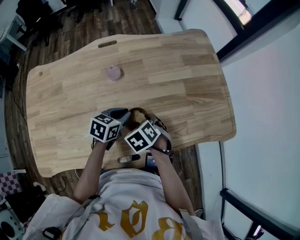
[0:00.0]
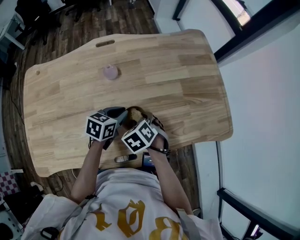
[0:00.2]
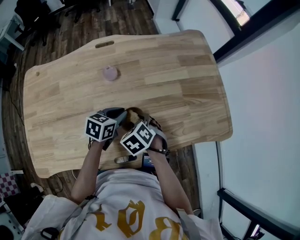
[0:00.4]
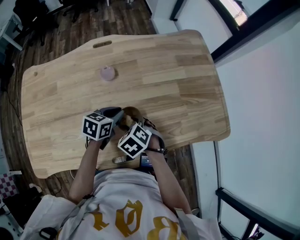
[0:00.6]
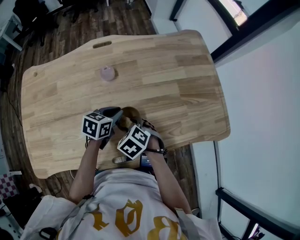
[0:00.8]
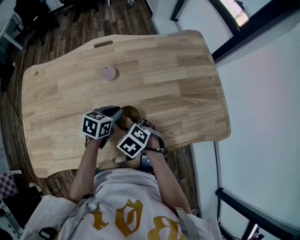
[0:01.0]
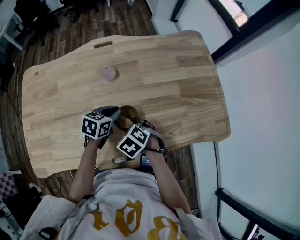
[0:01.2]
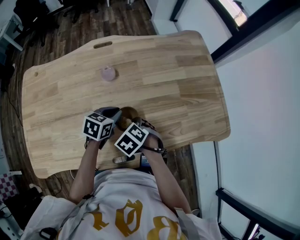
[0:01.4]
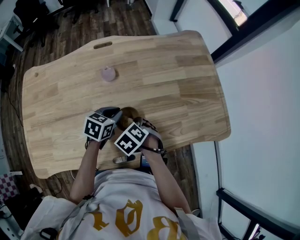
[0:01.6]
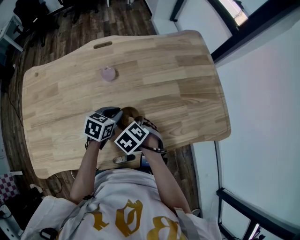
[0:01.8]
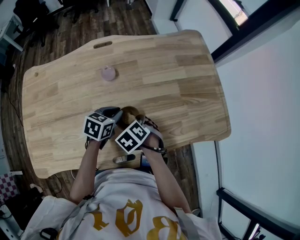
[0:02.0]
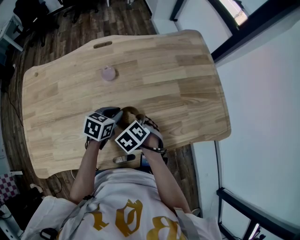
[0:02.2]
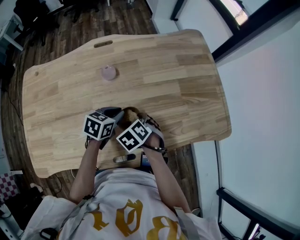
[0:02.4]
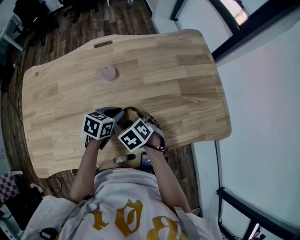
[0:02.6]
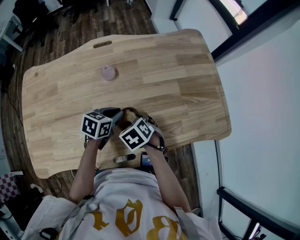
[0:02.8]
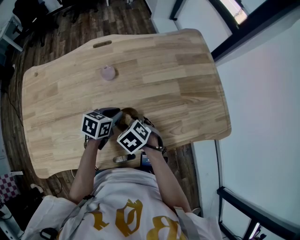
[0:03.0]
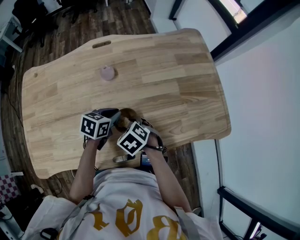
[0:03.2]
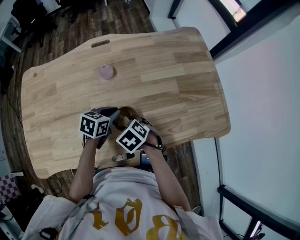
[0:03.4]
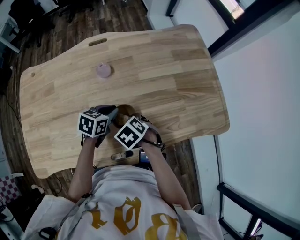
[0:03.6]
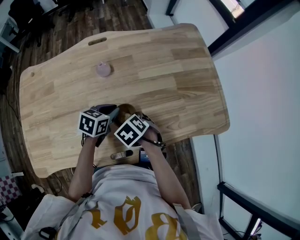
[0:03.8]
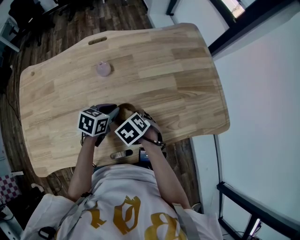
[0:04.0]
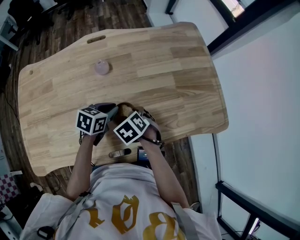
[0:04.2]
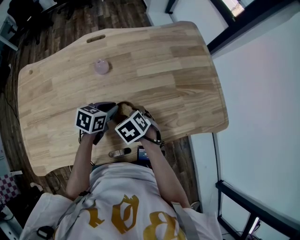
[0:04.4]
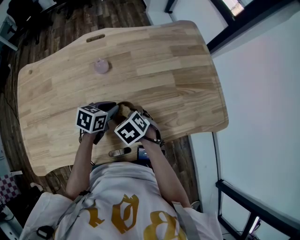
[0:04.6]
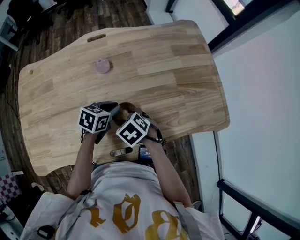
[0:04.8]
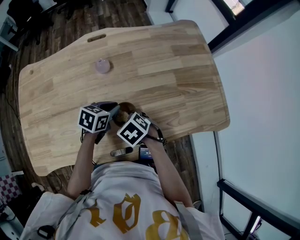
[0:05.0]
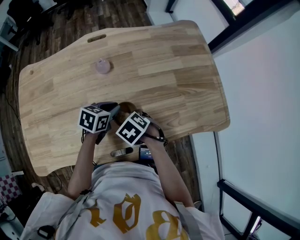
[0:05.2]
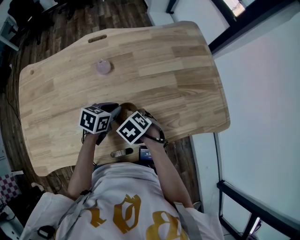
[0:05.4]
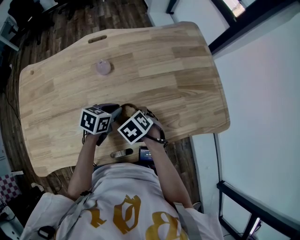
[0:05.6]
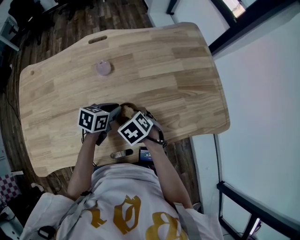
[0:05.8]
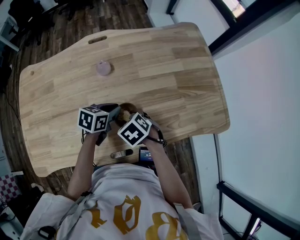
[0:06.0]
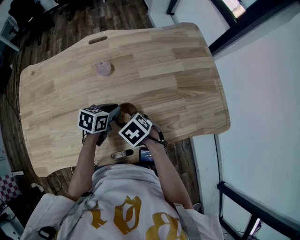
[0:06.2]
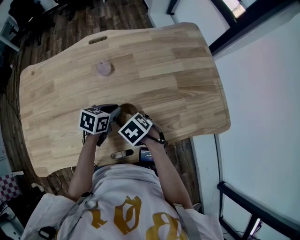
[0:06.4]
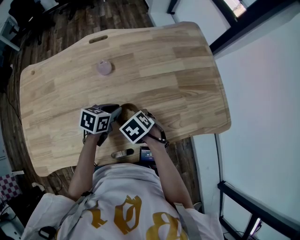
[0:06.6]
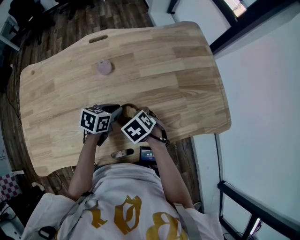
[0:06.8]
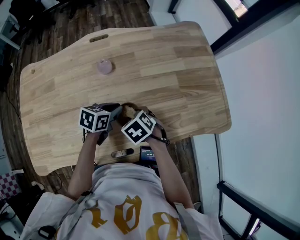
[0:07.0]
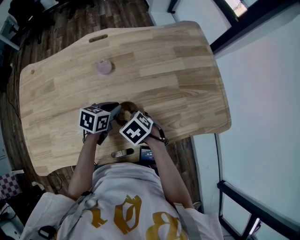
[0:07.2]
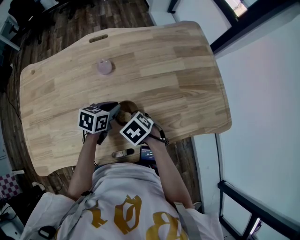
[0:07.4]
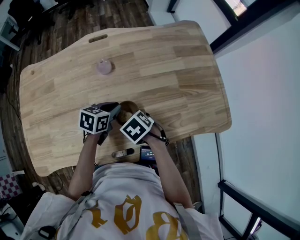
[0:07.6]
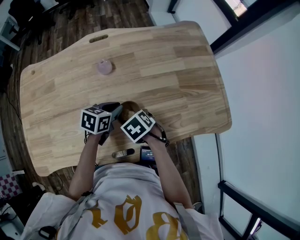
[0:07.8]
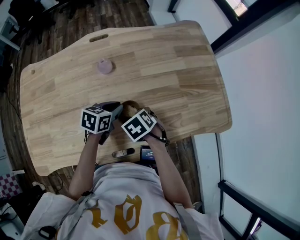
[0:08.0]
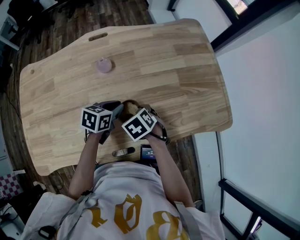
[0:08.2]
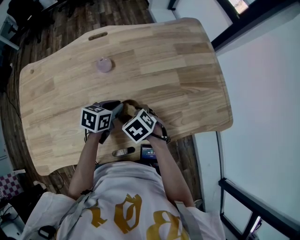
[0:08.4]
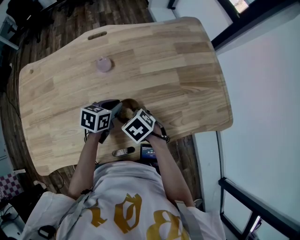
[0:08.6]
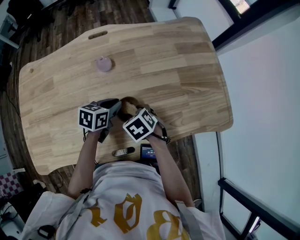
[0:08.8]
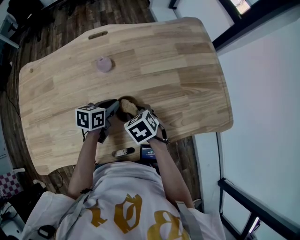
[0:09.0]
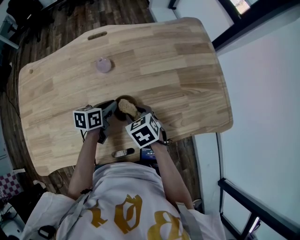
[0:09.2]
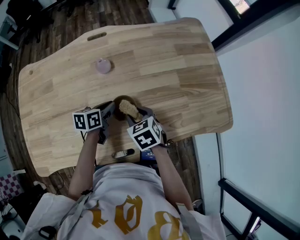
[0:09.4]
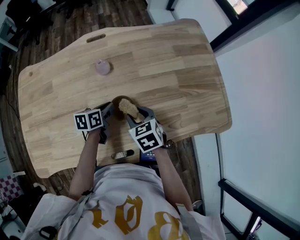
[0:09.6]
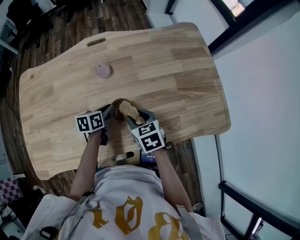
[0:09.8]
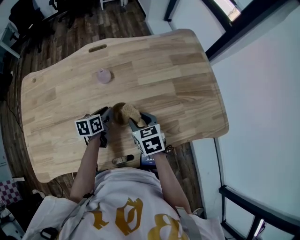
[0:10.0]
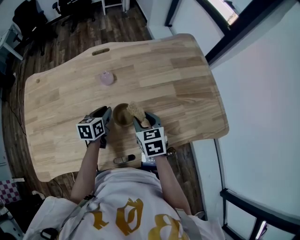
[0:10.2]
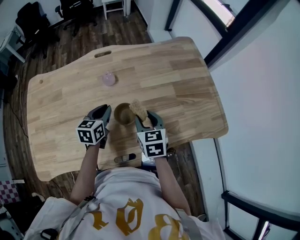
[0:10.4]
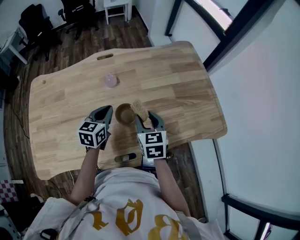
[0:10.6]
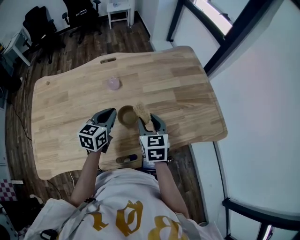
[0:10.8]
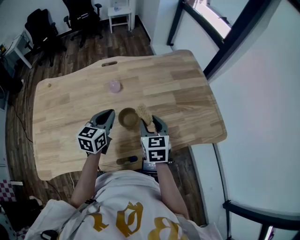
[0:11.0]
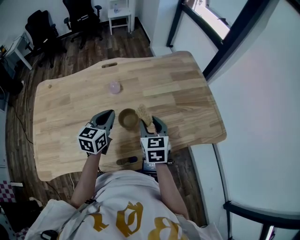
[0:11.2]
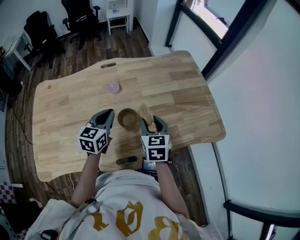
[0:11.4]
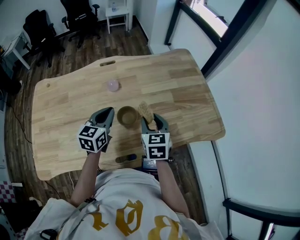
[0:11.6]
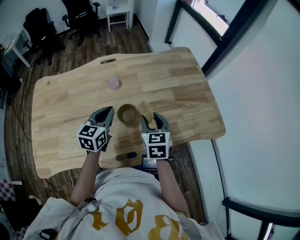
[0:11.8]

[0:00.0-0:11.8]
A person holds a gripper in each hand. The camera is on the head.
0:00.0 to 0:08.8: The grippers stay close to where they were, moving slightly.
0:08.8 to 0:10.4: The right gripper goes some 10 cm upward, and angles its fingers upward, by approximately 30 degrees, while the left gripper is displaced to the left and upward by some 10 cm, and rotates approximately 30 degrees.
0:10.4 to 0:11.8: The right gripper moves about 5 cm. Meanwhile the left gripper shifts approximately 10 cm upward.

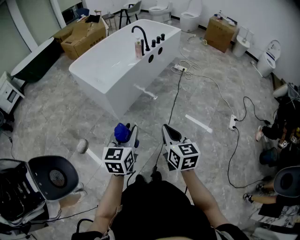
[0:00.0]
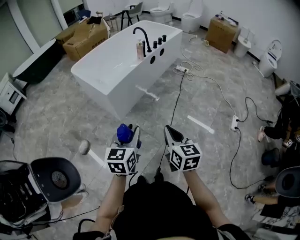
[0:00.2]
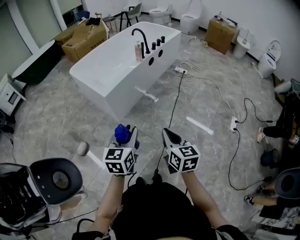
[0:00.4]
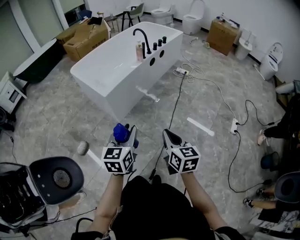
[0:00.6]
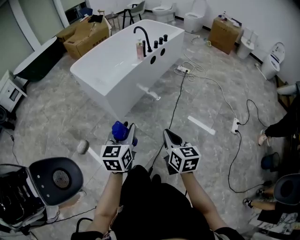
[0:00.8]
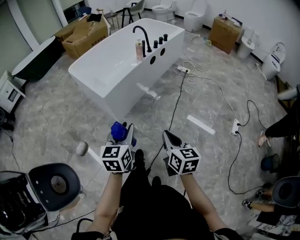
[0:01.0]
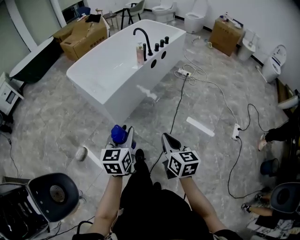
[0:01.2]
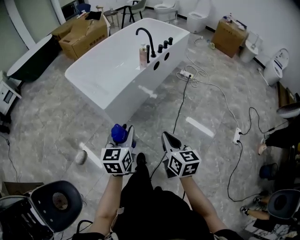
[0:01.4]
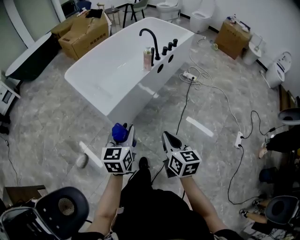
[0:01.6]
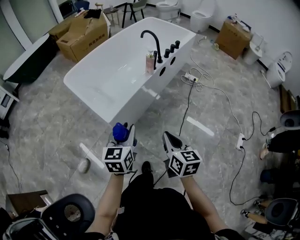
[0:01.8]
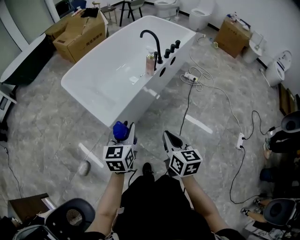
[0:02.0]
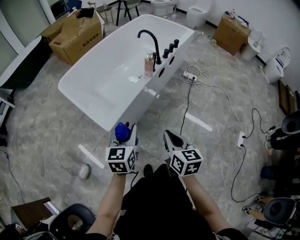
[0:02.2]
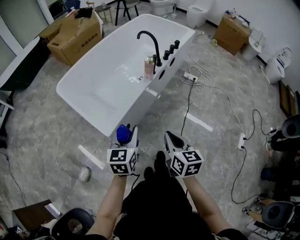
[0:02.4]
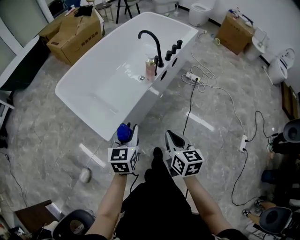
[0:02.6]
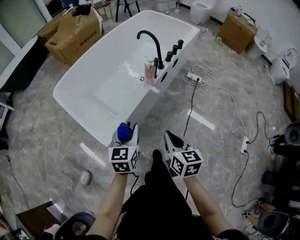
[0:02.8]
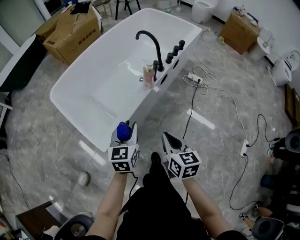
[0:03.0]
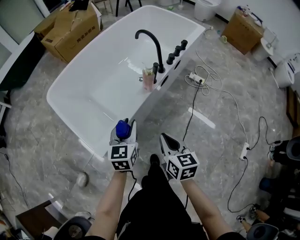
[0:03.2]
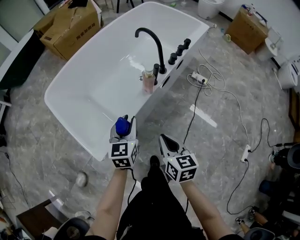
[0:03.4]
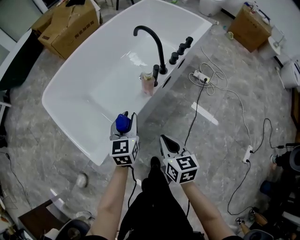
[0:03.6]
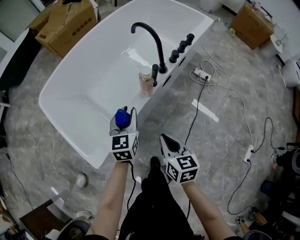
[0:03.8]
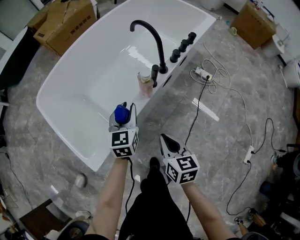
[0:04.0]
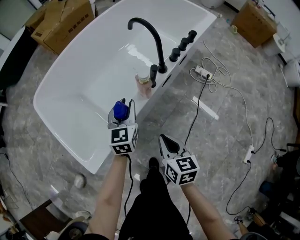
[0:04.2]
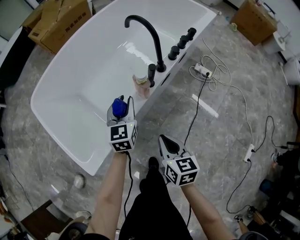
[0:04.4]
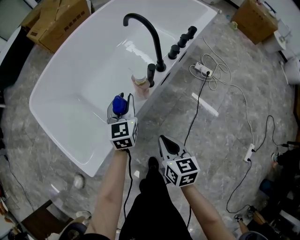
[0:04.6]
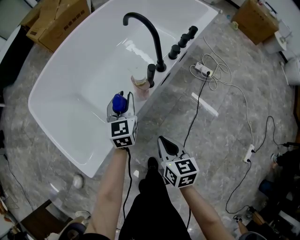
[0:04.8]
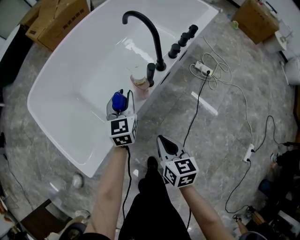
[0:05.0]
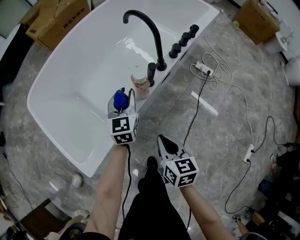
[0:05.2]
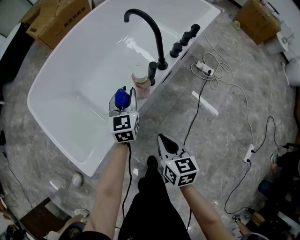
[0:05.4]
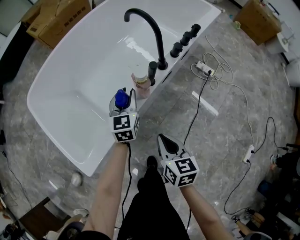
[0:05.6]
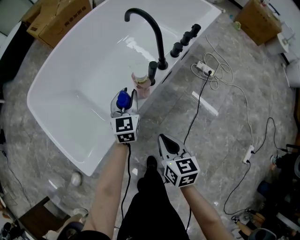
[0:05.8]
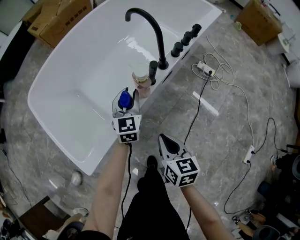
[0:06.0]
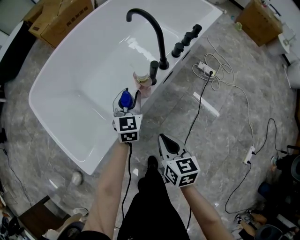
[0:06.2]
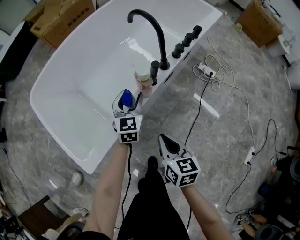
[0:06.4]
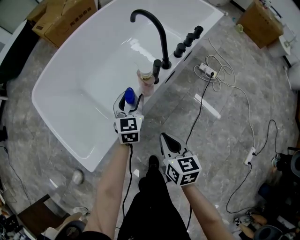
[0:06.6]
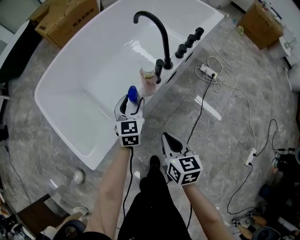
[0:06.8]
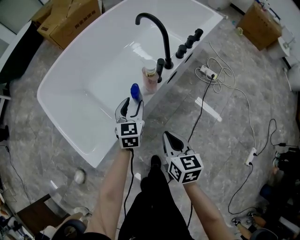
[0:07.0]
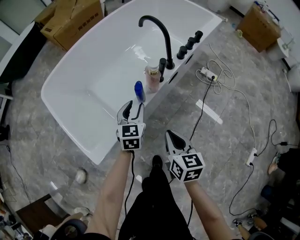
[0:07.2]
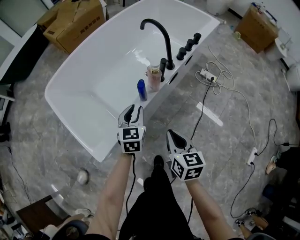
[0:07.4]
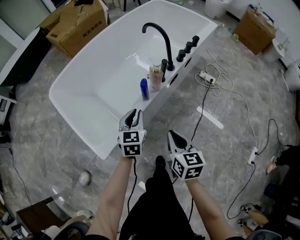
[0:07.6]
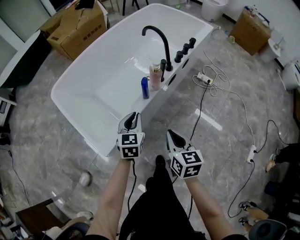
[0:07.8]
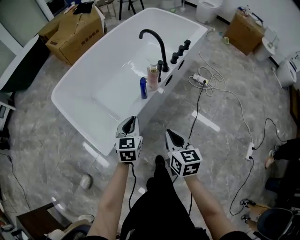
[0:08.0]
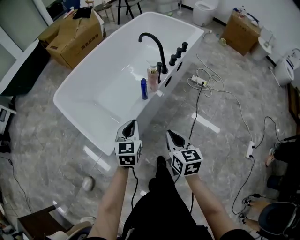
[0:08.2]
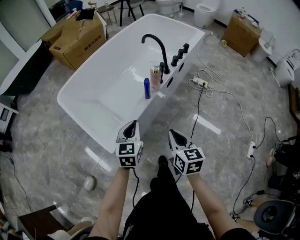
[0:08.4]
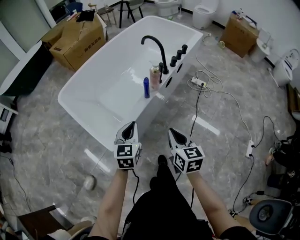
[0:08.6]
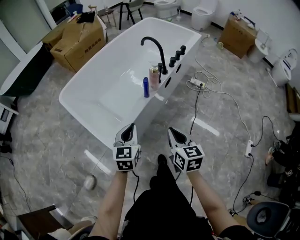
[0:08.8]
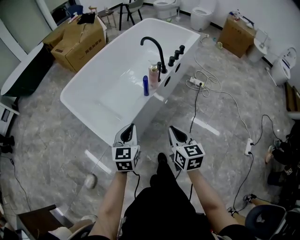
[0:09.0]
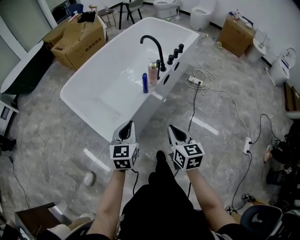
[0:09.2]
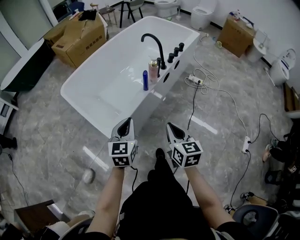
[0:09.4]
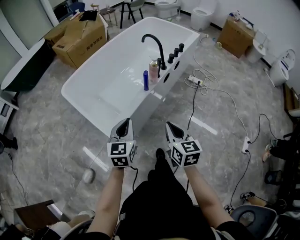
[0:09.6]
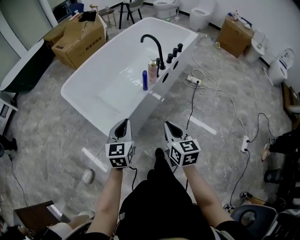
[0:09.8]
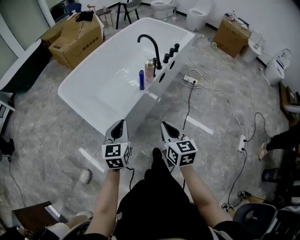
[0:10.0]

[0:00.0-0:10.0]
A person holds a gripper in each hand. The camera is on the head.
0:00.0 to 0:01.4: Both grippers travel together forward, about 20 cm.
0:01.4 to 0:02.8: The grippers both shift forward by roughly 30 cm.
0:02.8 to 0:04.2: The grippers both shift forward and downward by roughly 25 cm.
0:04.2 to 0:05.8: The left gripper heads downward, covering about 5 cm.
0:05.8 to 0:07.2: The left gripper travels backward by about 10 cm; the right gripper ends up roughly 5 cm from where it was.
0:07.2 to 0:08.6: The two grippers go roughly 20 cm backward and upward. The left gripper closes its fingers.
0:08.6 to 0:10.0: The left gripper travels backward and upward by about 10 cm. Meanwhile the right gripper is displaced backward by about 5 cm.

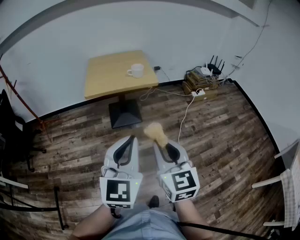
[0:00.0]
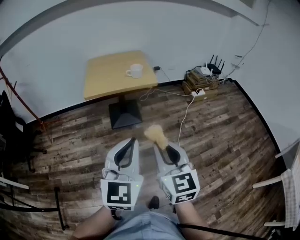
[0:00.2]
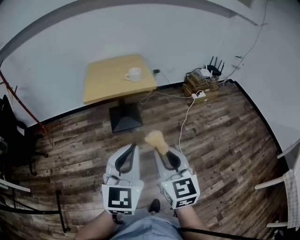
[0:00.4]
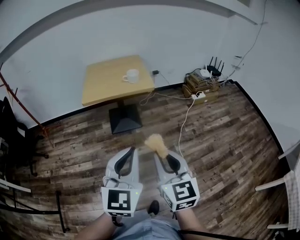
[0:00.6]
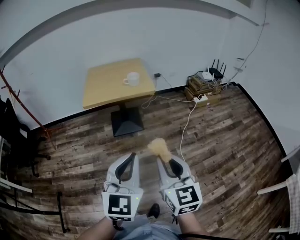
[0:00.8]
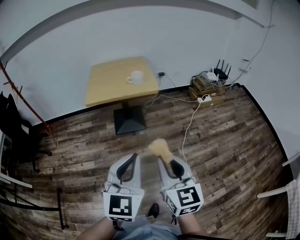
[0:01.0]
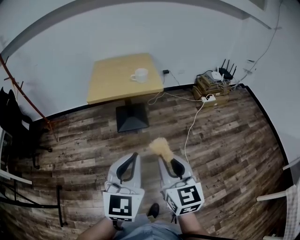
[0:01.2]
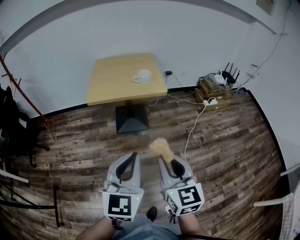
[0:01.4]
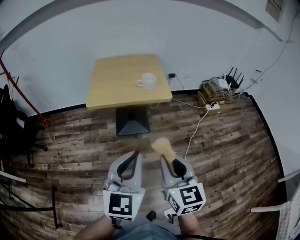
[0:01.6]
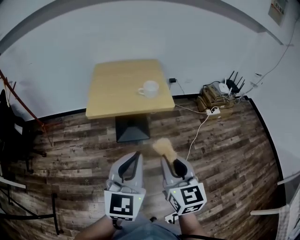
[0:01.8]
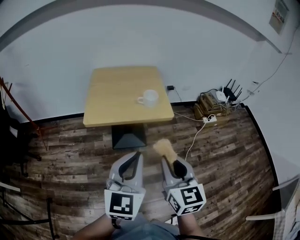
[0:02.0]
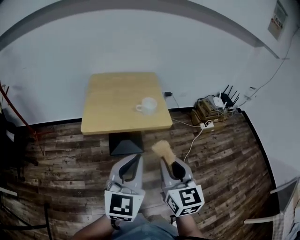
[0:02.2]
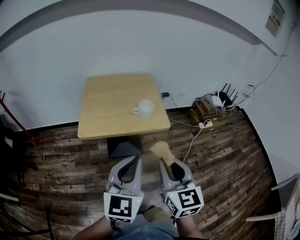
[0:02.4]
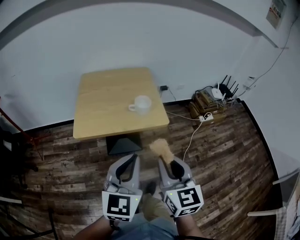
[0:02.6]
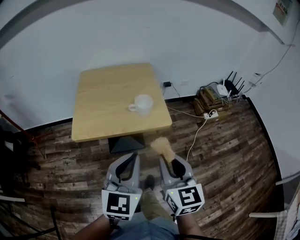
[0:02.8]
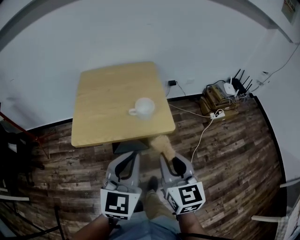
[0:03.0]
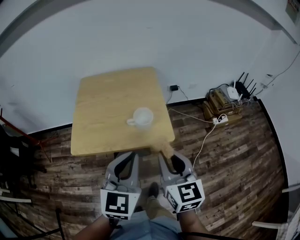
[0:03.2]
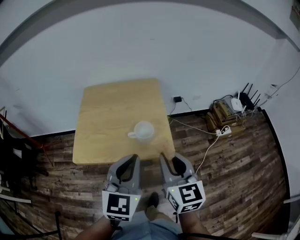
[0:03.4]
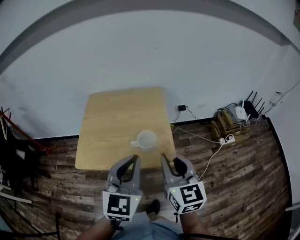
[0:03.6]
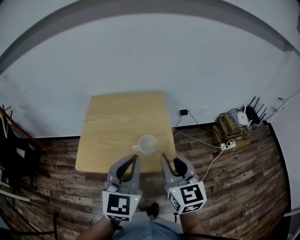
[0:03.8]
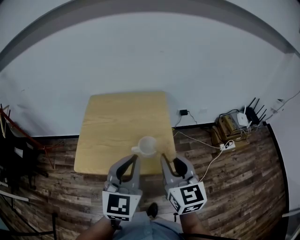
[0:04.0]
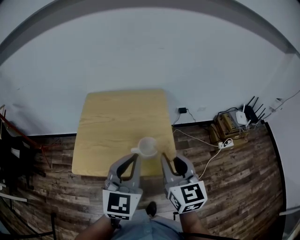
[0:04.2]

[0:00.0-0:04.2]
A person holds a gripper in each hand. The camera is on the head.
0:00.0 to 0:01.4: Both grippers move forward, some 10 cm.
0:01.4 to 0:02.8: Both grippers travel together forward, roughly 30 cm.
0:02.8 to 0:04.2: Both grippers move forward, some 25 cm.
